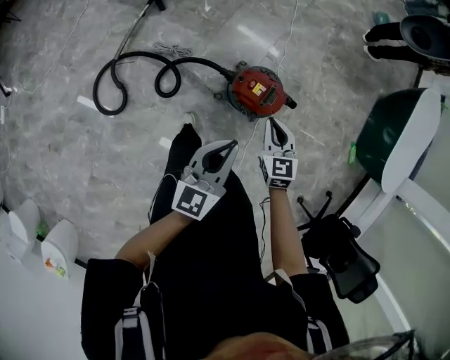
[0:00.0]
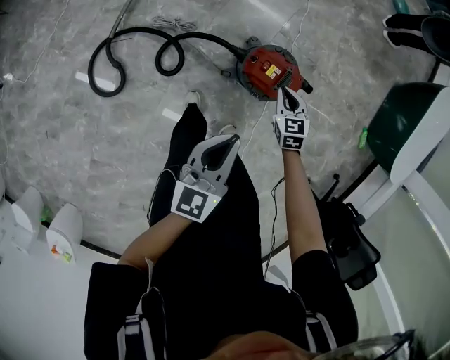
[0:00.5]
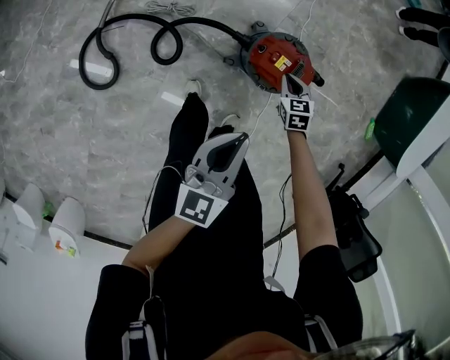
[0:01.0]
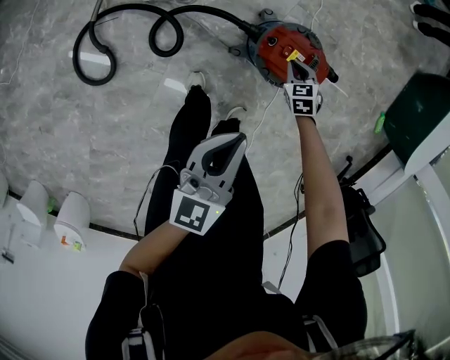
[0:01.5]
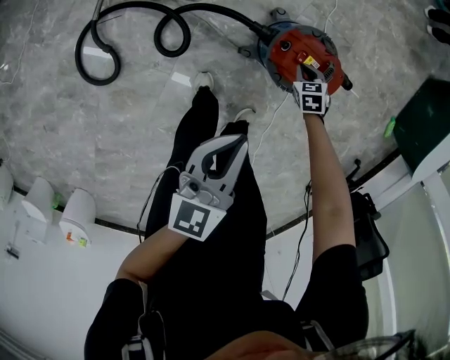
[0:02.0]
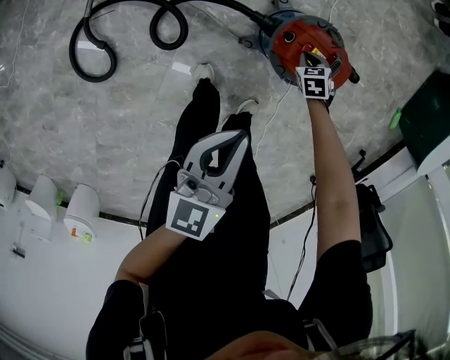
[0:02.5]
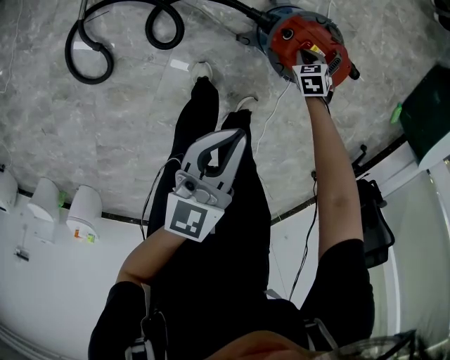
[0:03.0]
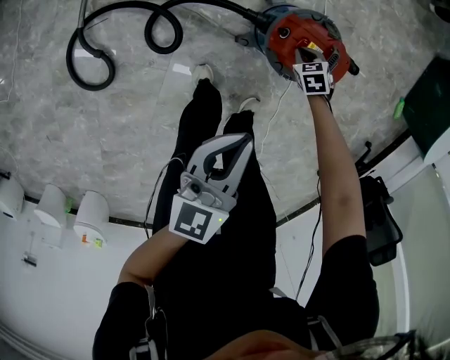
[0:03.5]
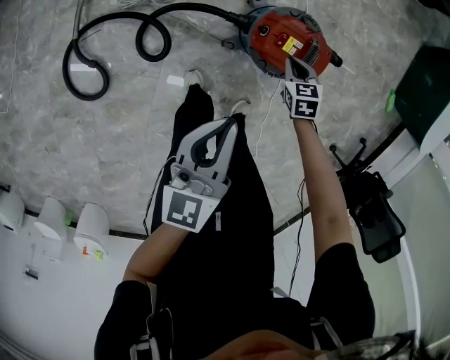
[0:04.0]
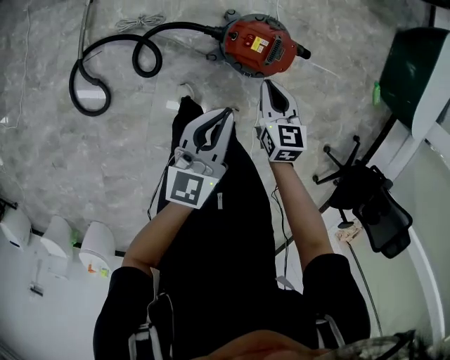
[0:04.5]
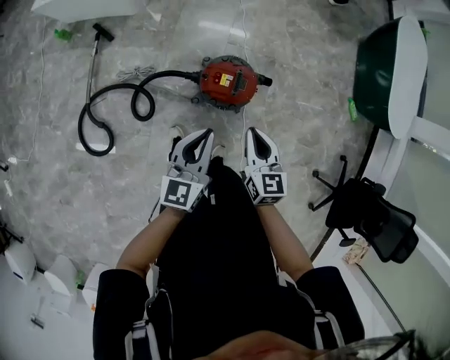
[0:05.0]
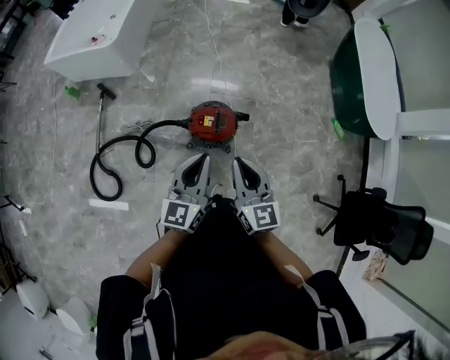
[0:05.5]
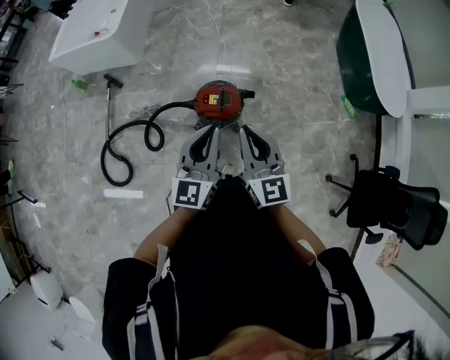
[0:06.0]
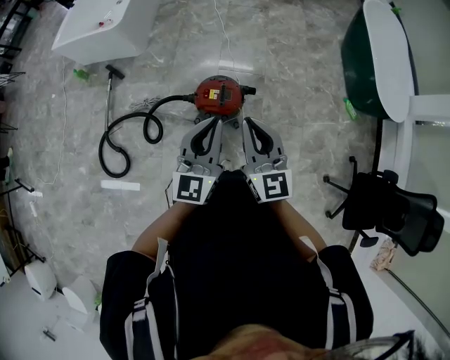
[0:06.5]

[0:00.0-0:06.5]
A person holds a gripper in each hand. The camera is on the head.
0:00.0 to 0:02.0: The left gripper is displaced downward by approximately 20 cm. The right gripper shifts about 40 cm downward, and tips its fingers downward by about 40 degrees.
0:02.0 to 0:04.5: The left gripper changes place by roughly 10 cm. Meanwhile the right gripper moves upward, some 30 cm, and turns by some 40 degrees.
0:04.5 to 0:06.5: The right gripper moves upward, approximately 35 cm, and angles its fingers upward, by roughly 40 degrees. Meanwhile the left gripper is displaced upward and to the right by about 30 cm, and changes its angle by approximately 30 degrees.

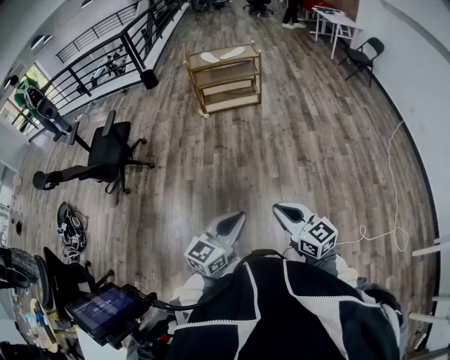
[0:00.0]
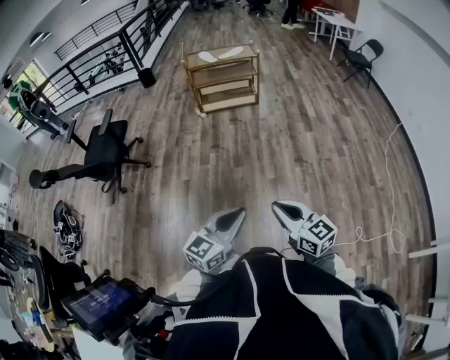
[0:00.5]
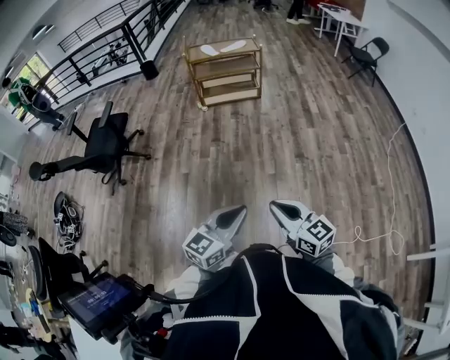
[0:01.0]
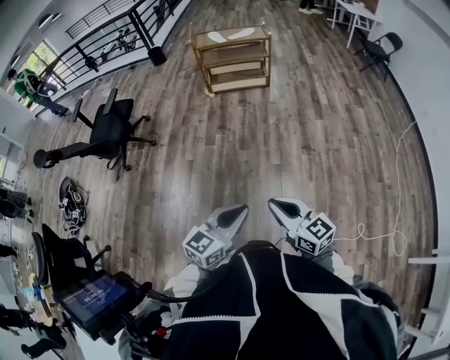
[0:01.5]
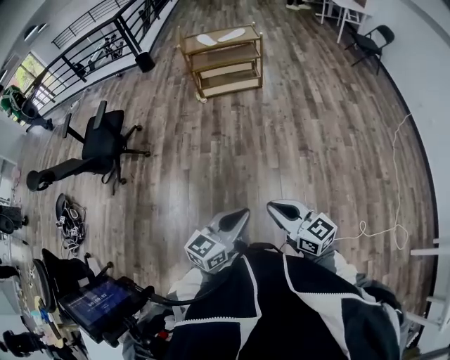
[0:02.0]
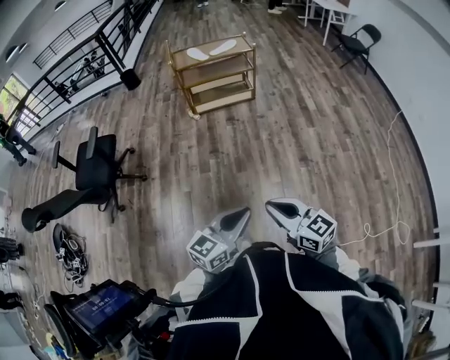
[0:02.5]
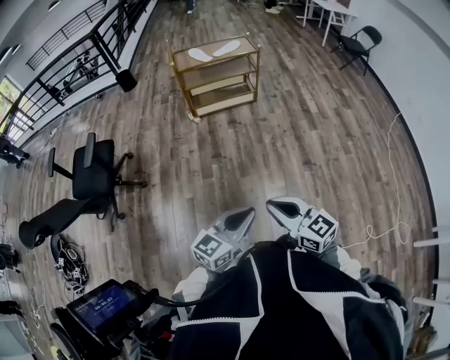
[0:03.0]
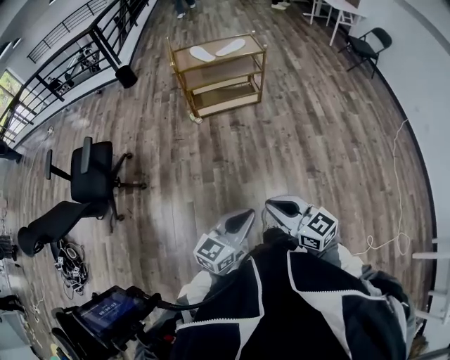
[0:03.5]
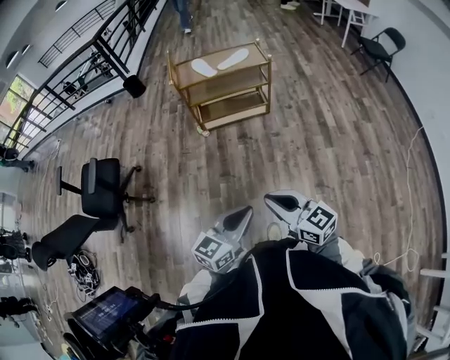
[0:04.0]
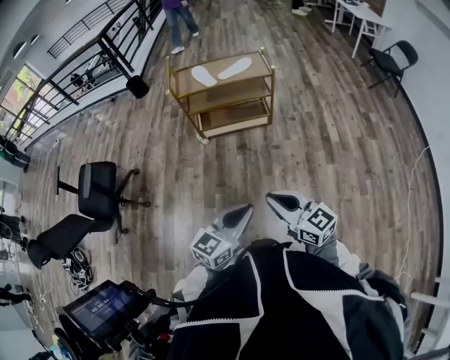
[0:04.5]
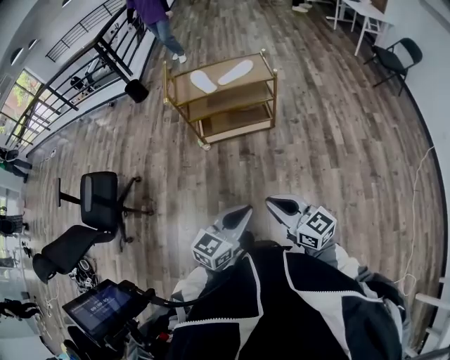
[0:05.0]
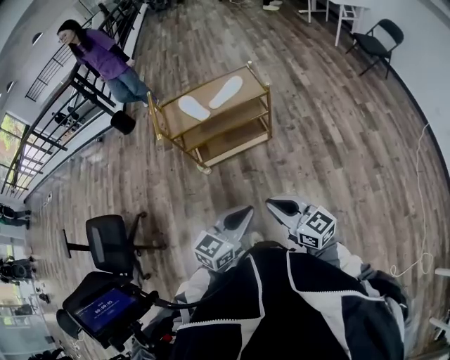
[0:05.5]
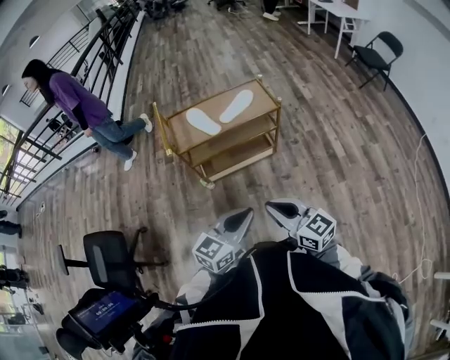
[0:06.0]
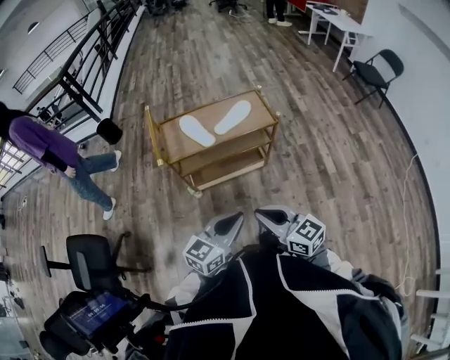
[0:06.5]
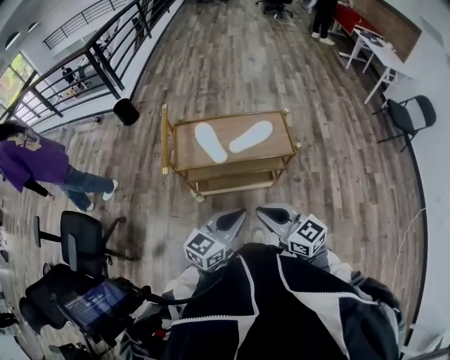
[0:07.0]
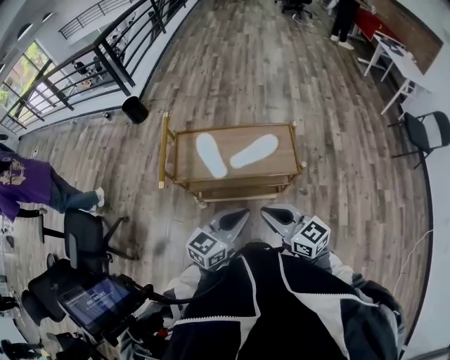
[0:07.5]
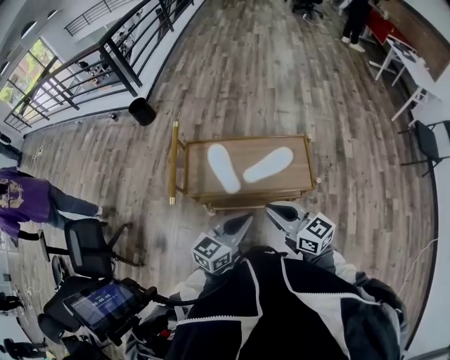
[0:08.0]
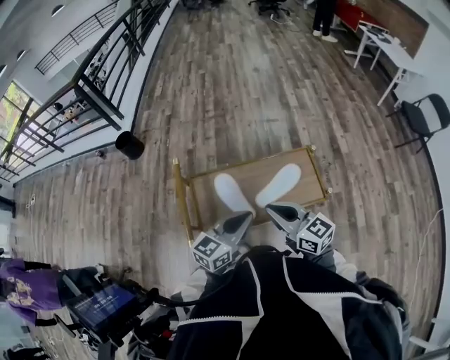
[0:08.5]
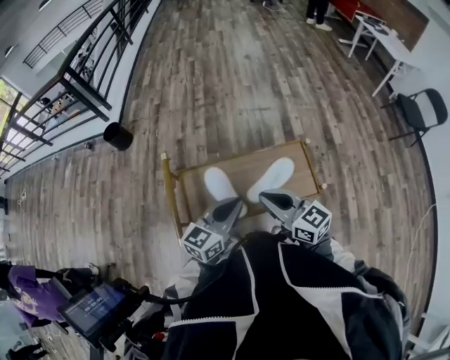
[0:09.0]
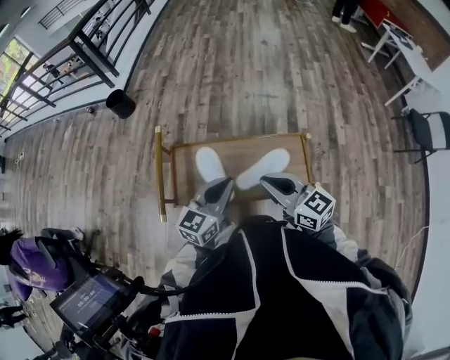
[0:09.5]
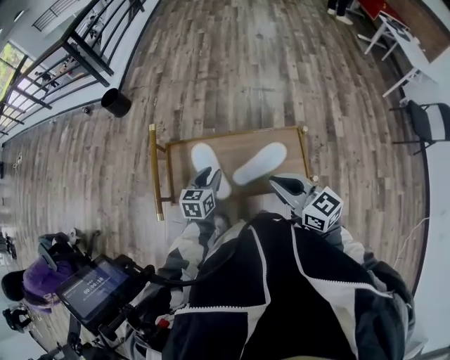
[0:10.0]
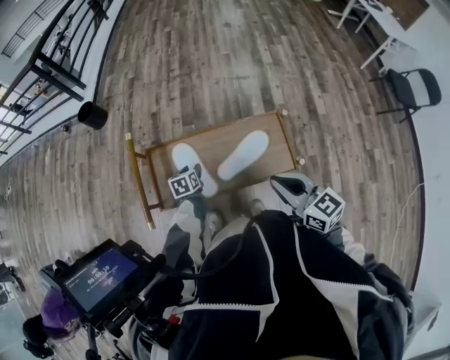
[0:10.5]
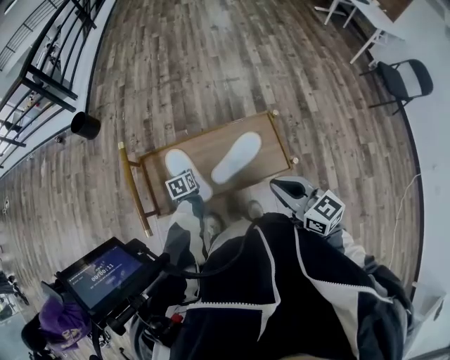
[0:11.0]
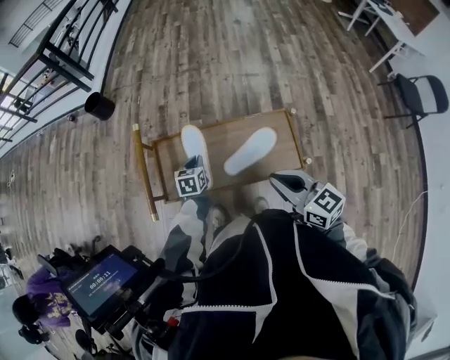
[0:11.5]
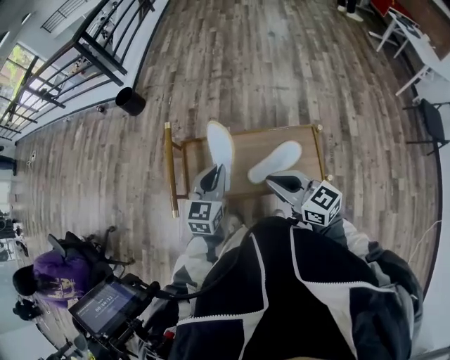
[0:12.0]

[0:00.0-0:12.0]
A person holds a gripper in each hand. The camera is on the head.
0:00.0 to 0:02.0: The two grippers go some 5 cm forward.
0:02.0 to 0:04.0: The two grippers travel together, forward, approximately 40 cm.
0:04.0 to 0:06.0: The two grippers go approximately 40 cm forward.
0:06.0 to 0:08.0: Both grippers move forward, about 35 cm.
0:08.0 to 0:10.0: The left gripper moves forward and downward, about 30 cm, turns by approximately 30 degrees, and opens up, while the right gripper travels forward by some 15 cm.
0:10.0 to 0:12.0: The left gripper moves upward, about 15 cm, rotates approximately 20 degrees, and closes.

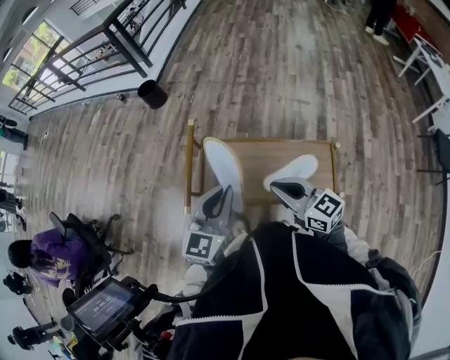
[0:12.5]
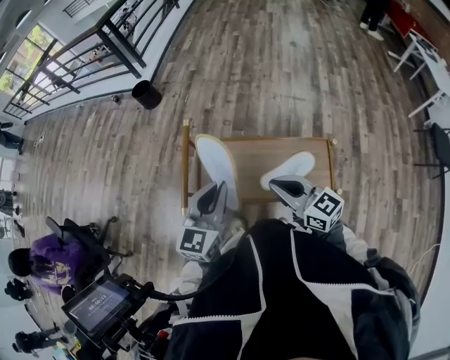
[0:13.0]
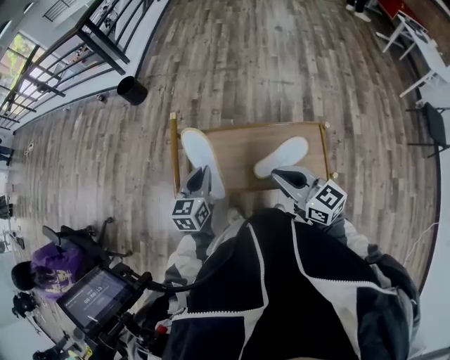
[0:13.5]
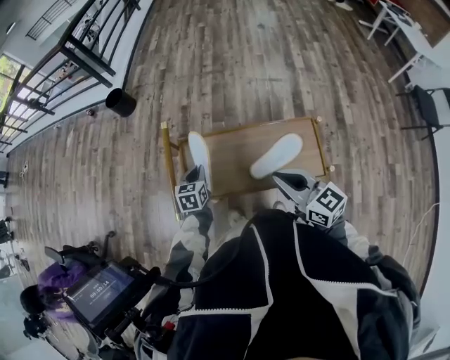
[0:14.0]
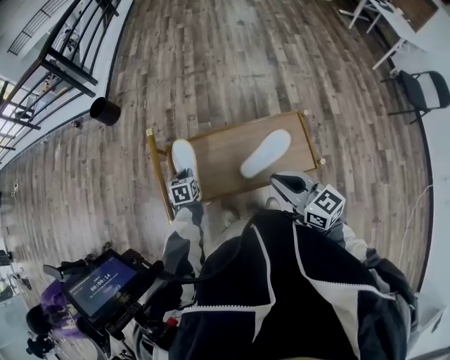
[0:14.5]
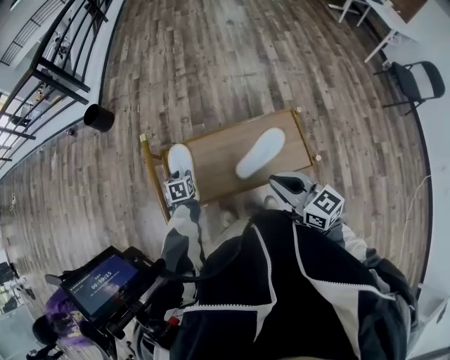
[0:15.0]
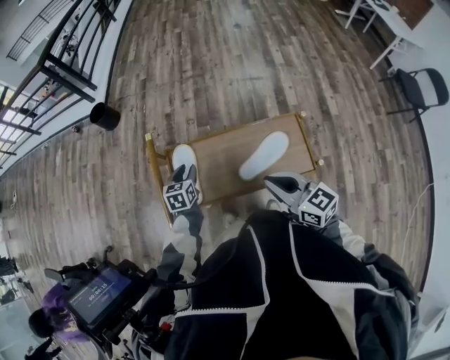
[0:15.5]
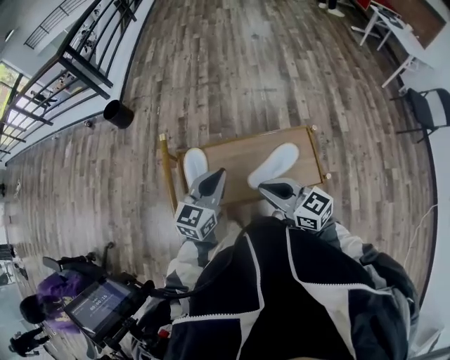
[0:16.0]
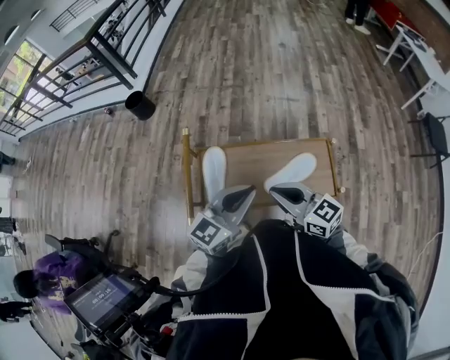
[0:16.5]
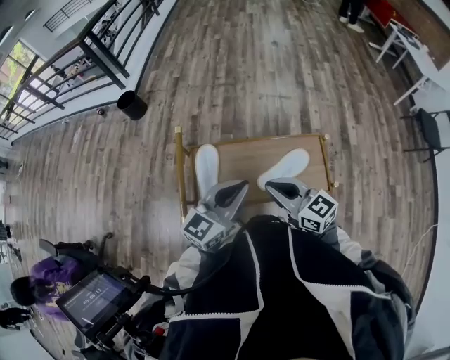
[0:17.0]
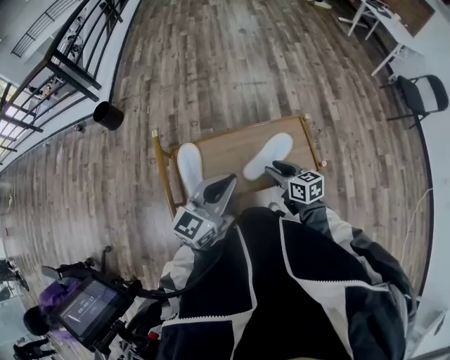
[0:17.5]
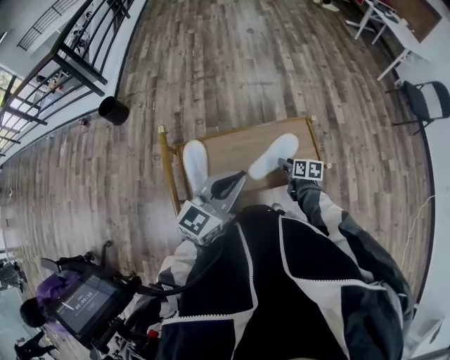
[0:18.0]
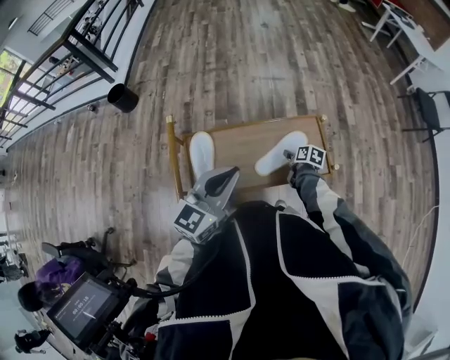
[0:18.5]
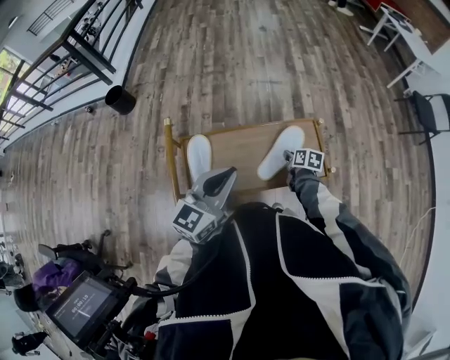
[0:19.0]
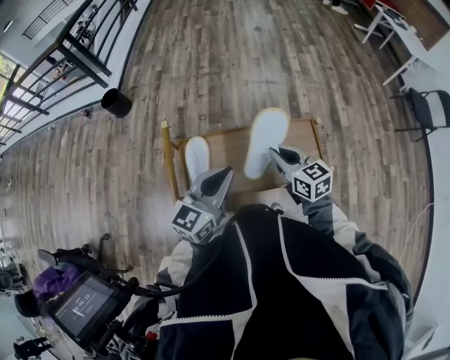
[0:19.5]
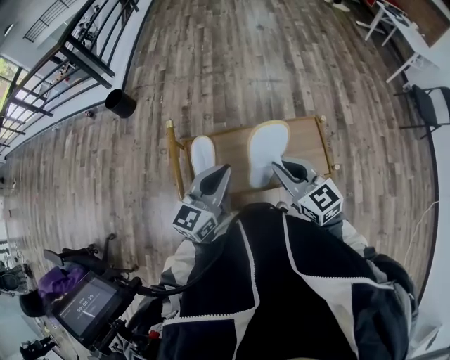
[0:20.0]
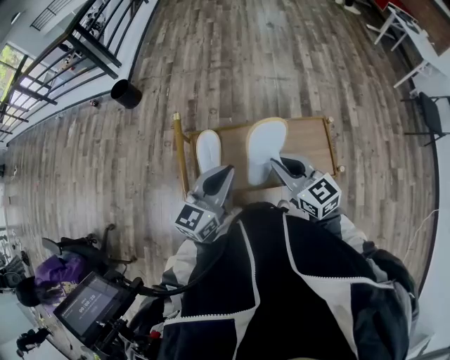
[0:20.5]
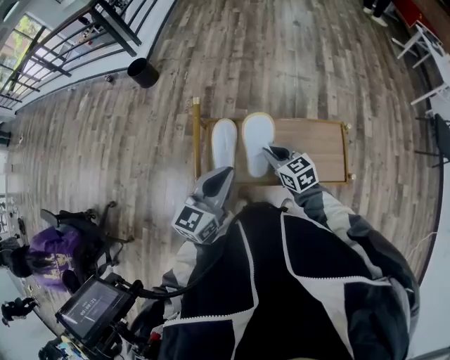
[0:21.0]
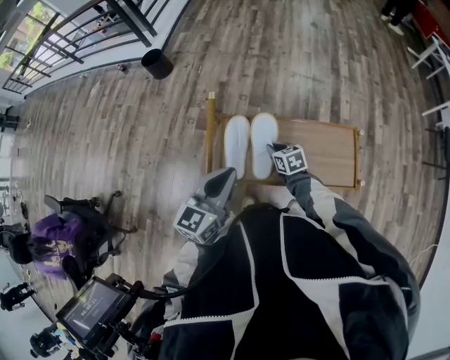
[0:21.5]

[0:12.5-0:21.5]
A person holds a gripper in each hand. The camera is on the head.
0:12.5 to 0:14.5: The left gripper is displaced downward and forward by about 35 cm, and points its fingers some 40 degrees further downward. Meanwhile the right gripper moves to the right, some 5 cm, and turns by some 20 degrees.
0:14.5 to 0:17.0: The right gripper shifts approximately 10 cm to the left. The left gripper shifts approximately 30 cm upward, tips its fingers upward by roughly 50 degrees, and opens, then closes again.
0:17.0 to 0:19.5: The right gripper shifts some 10 cm forward and to the right, goes downward and returns, approximately 30 cm each way, turns by roughly 20 degrees, and opens, then closes once more.
0:19.5 to 0:21.5: The left gripper is displaced to the left by about 10 cm, while the right gripper travels downward and to the left by approximately 25 cm, and swivels about 30 degrees.
